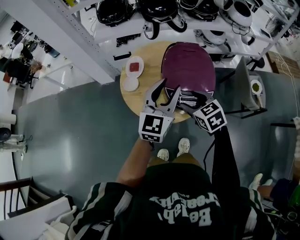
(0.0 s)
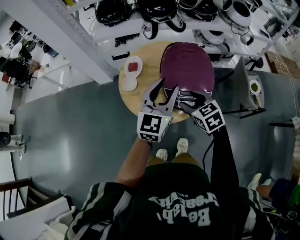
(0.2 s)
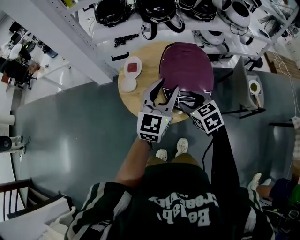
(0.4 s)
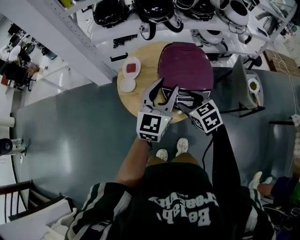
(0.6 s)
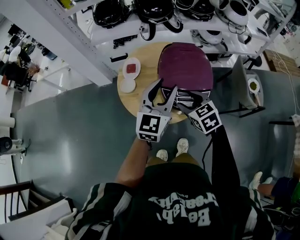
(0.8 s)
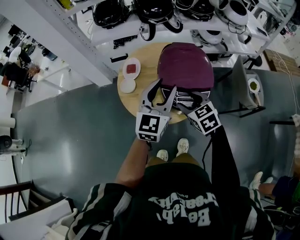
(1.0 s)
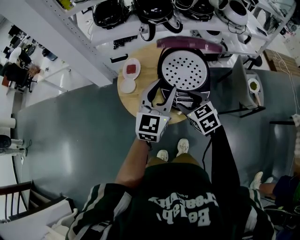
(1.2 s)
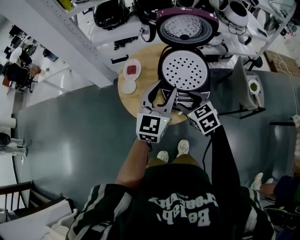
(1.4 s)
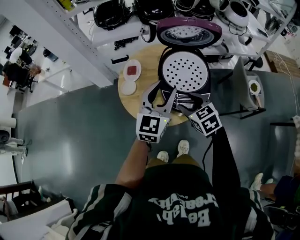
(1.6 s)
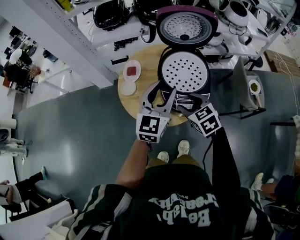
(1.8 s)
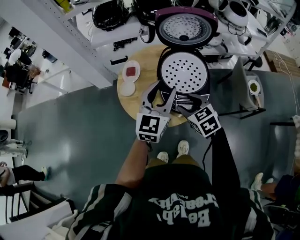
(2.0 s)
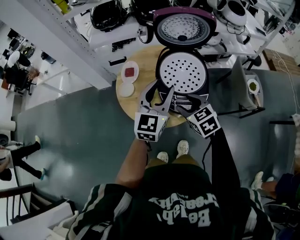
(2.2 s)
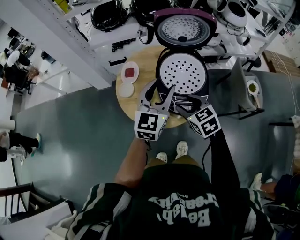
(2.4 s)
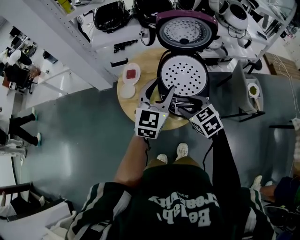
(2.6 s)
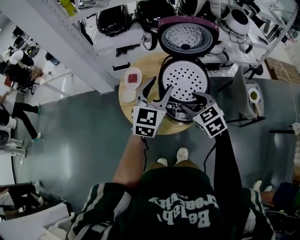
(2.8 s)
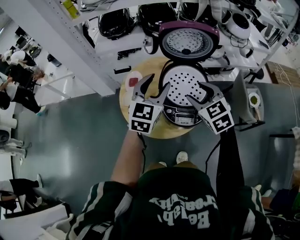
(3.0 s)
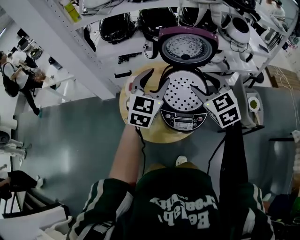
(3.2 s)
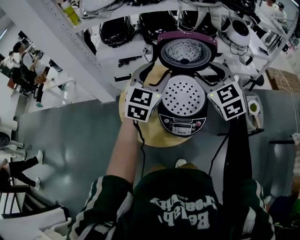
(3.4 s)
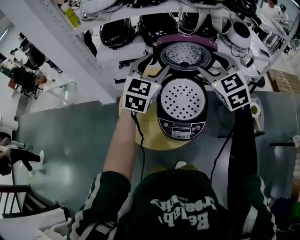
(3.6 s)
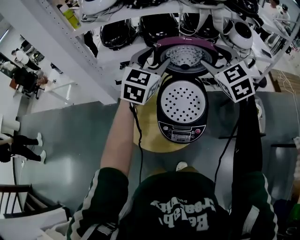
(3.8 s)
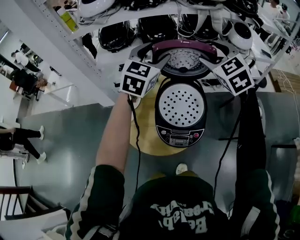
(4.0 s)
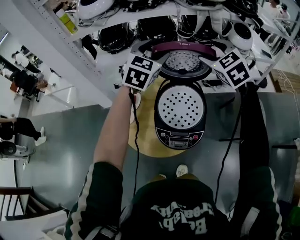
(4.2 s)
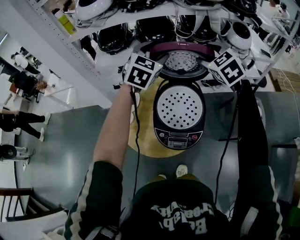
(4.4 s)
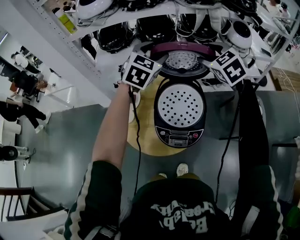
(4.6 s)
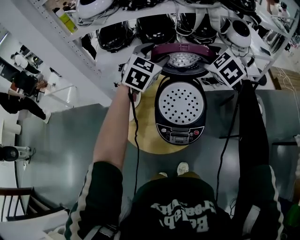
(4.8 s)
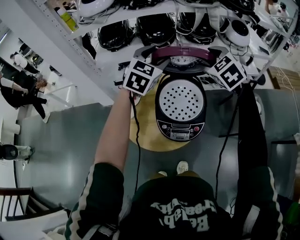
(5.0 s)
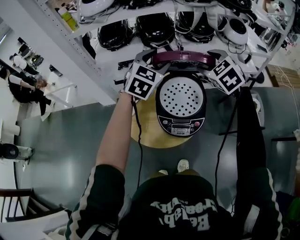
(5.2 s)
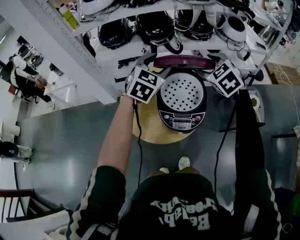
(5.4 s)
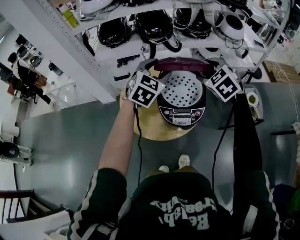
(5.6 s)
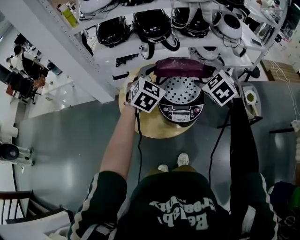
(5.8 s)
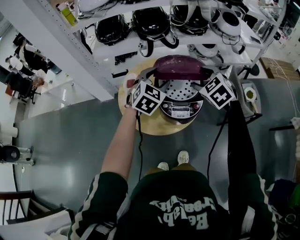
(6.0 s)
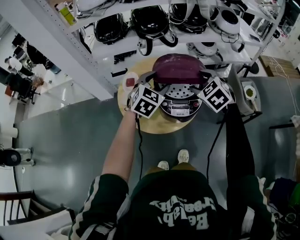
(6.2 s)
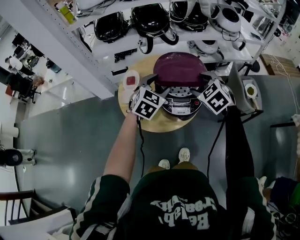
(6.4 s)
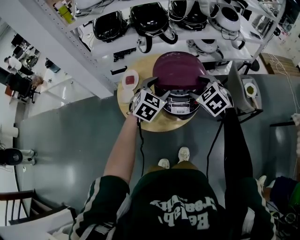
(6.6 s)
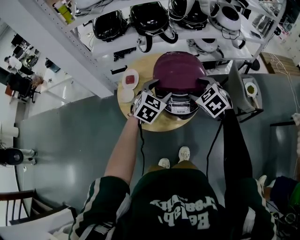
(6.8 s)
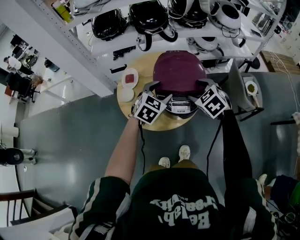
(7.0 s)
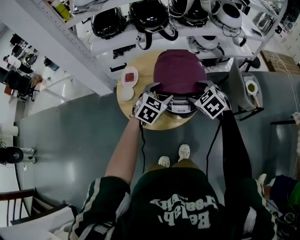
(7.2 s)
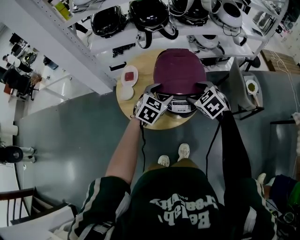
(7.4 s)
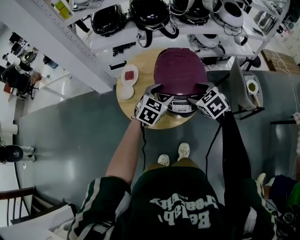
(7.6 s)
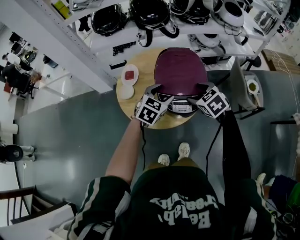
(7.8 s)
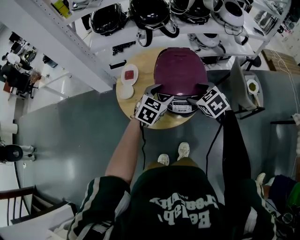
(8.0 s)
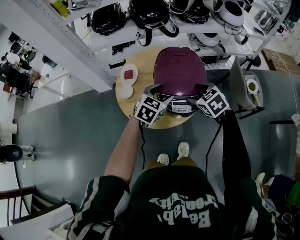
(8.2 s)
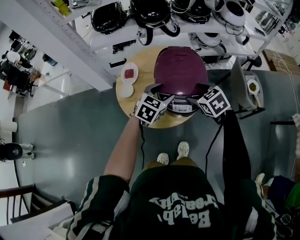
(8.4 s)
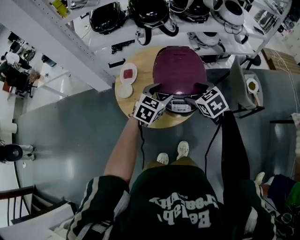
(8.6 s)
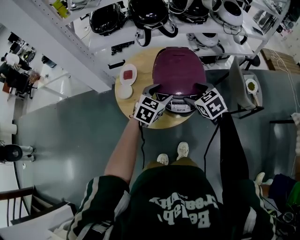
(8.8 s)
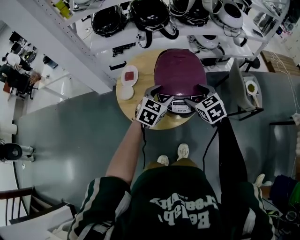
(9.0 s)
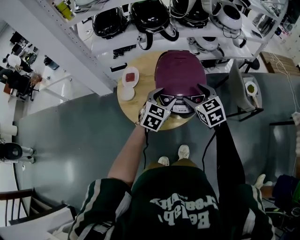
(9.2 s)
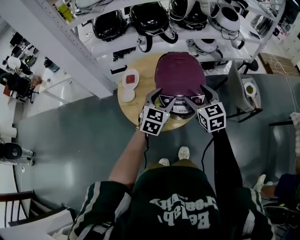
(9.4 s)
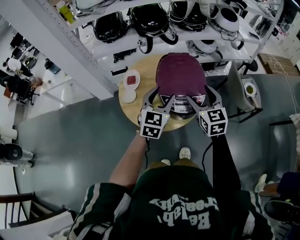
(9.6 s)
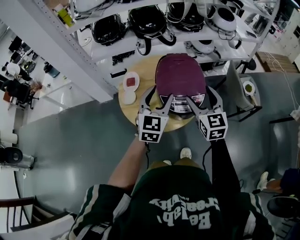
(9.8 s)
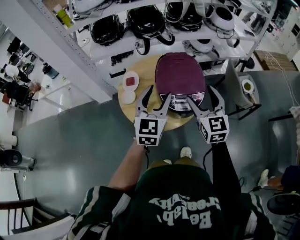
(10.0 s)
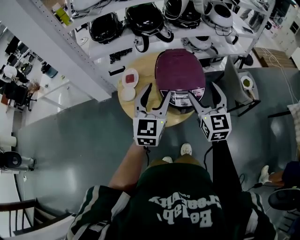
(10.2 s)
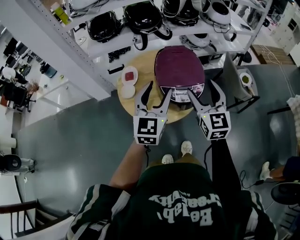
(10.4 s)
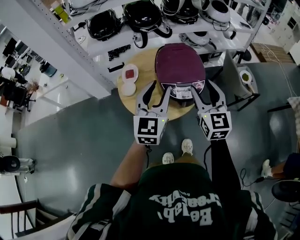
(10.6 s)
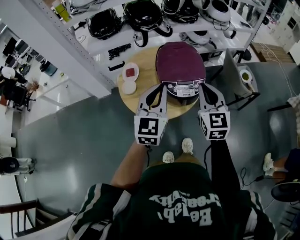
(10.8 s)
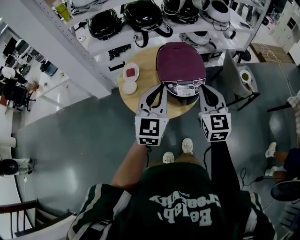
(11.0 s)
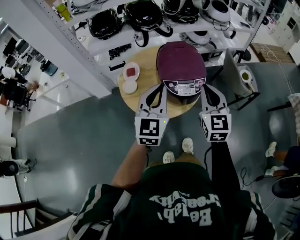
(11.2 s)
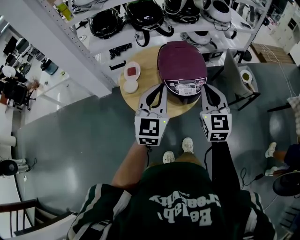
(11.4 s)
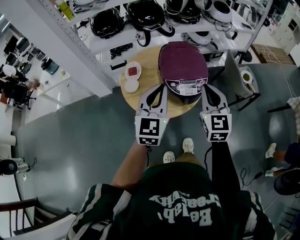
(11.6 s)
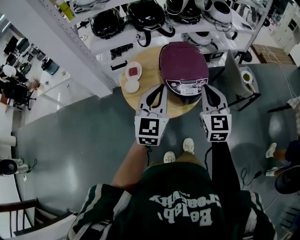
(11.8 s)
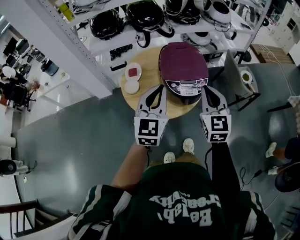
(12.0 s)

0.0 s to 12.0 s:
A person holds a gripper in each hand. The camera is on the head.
0.0 to 1.6 s: Neither gripper changes place.
1.6 to 3.0 s: The left gripper is displaced forward by approximately 5 cm. Meanwhile the right gripper goes approximately 10 cm upward and forward.
3.0 to 4.4 s: The right gripper shifts roughly 25 cm forward and upward. Meanwhile the left gripper travels forward by roughly 20 cm.
4.4 to 6.0 s: Both grippers move backward and downward, some 20 cm.
6.0 to 7.6 s: Both grippers move downward, some 10 cm.
7.6 to 9.0 s: The grippers make only small movements.
9.0 to 10.4 s: Both grippers travel together upward and backward, some 20 cm. The left gripper swivels approximately 30 degrees; the right gripper angles its fingers upward, by some 30 degrees.
10.4 to 12.0 s: The left gripper closes up. Meanwhile the right gripper closes.

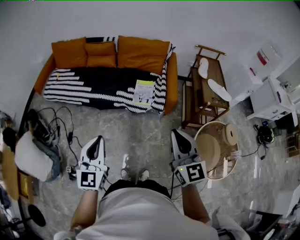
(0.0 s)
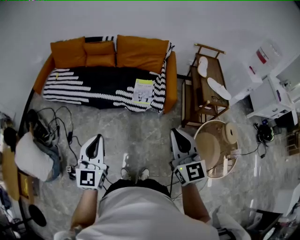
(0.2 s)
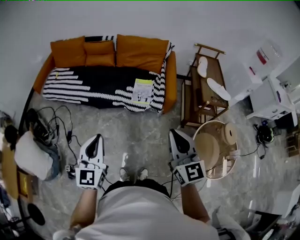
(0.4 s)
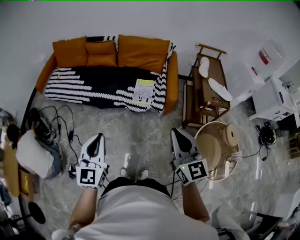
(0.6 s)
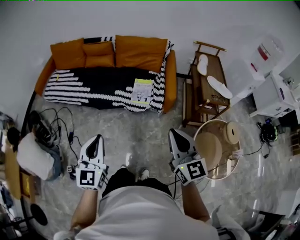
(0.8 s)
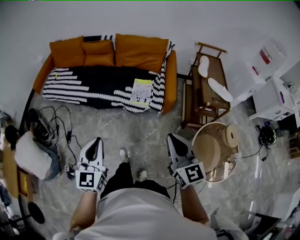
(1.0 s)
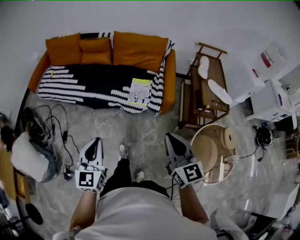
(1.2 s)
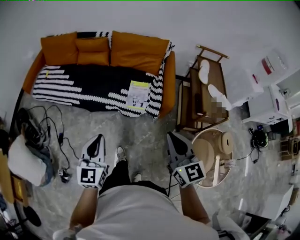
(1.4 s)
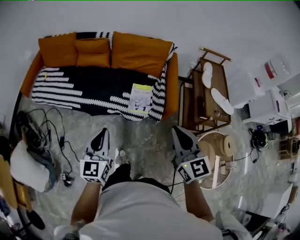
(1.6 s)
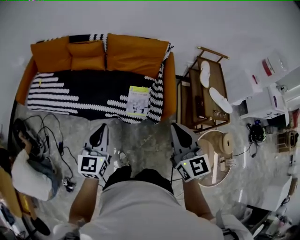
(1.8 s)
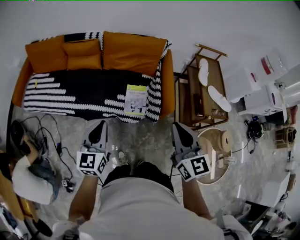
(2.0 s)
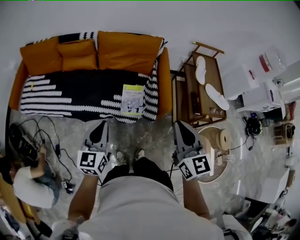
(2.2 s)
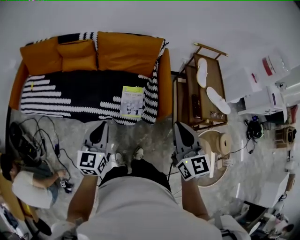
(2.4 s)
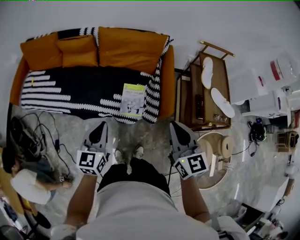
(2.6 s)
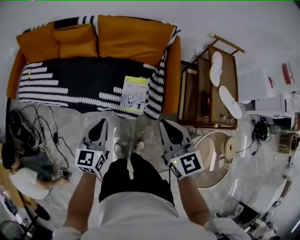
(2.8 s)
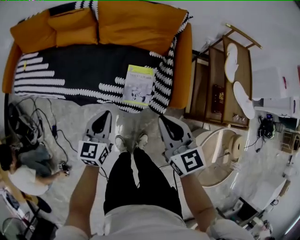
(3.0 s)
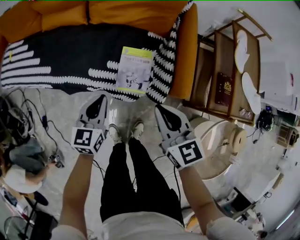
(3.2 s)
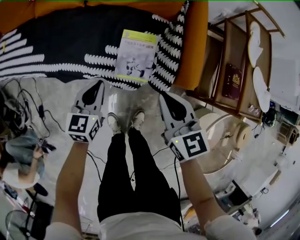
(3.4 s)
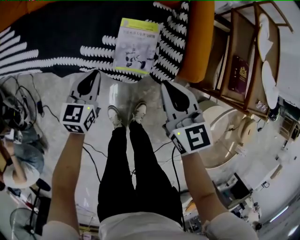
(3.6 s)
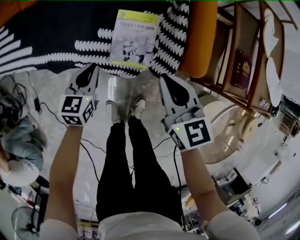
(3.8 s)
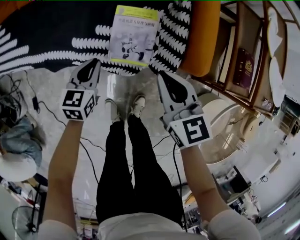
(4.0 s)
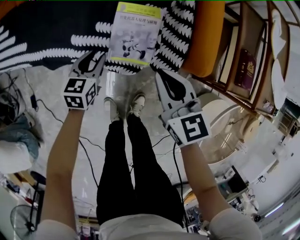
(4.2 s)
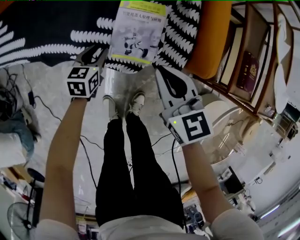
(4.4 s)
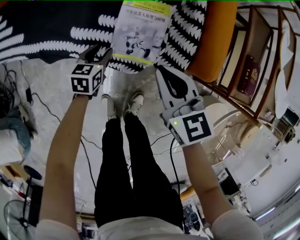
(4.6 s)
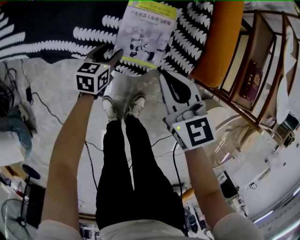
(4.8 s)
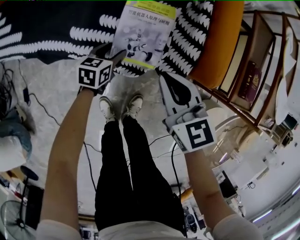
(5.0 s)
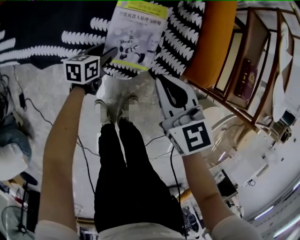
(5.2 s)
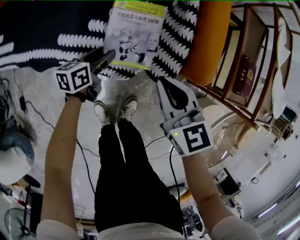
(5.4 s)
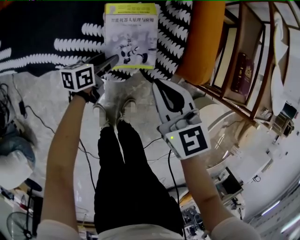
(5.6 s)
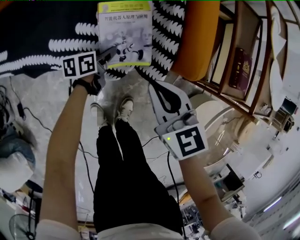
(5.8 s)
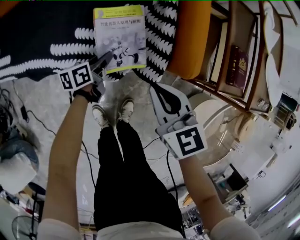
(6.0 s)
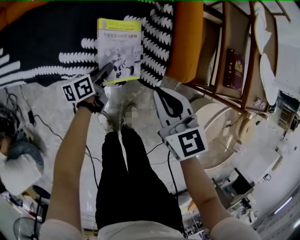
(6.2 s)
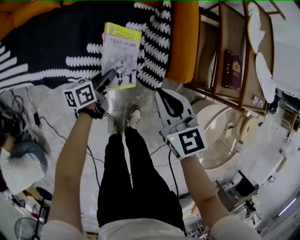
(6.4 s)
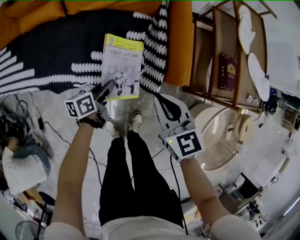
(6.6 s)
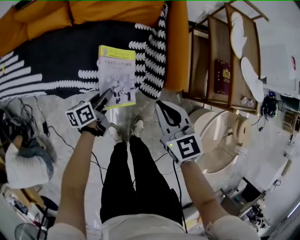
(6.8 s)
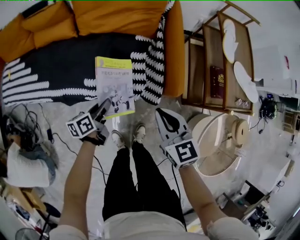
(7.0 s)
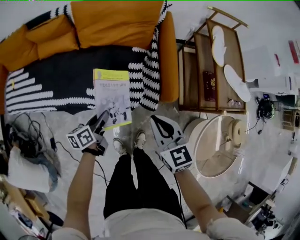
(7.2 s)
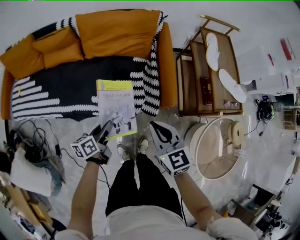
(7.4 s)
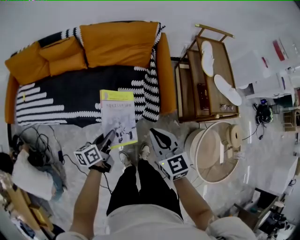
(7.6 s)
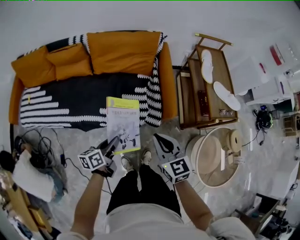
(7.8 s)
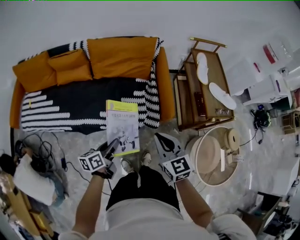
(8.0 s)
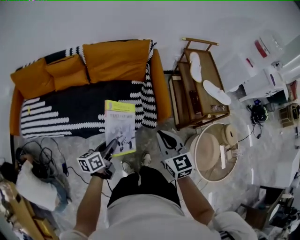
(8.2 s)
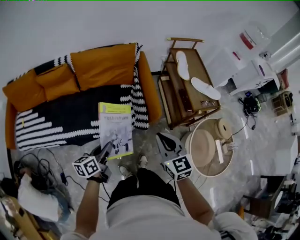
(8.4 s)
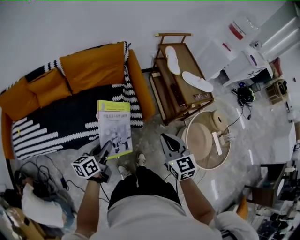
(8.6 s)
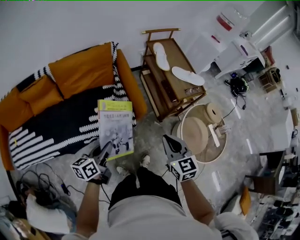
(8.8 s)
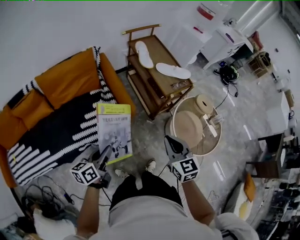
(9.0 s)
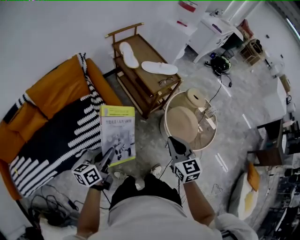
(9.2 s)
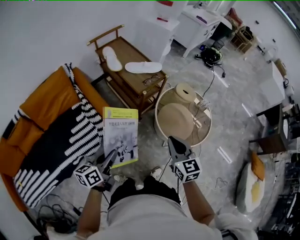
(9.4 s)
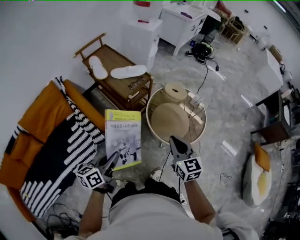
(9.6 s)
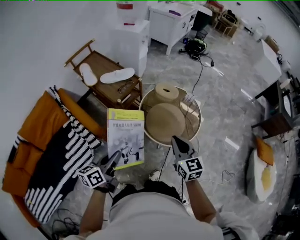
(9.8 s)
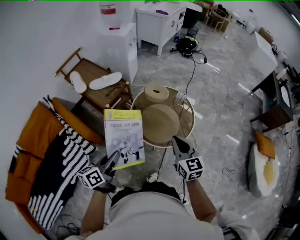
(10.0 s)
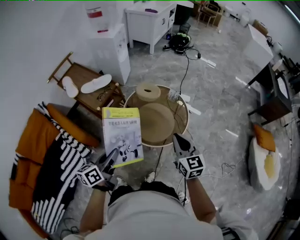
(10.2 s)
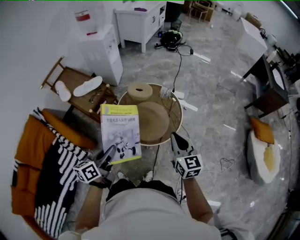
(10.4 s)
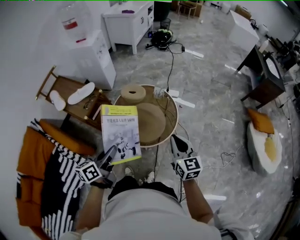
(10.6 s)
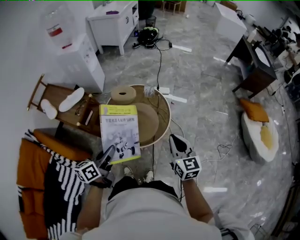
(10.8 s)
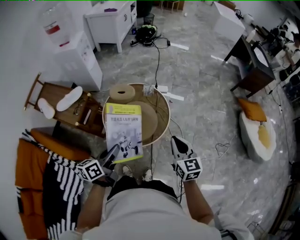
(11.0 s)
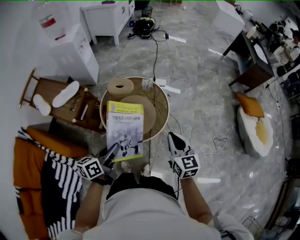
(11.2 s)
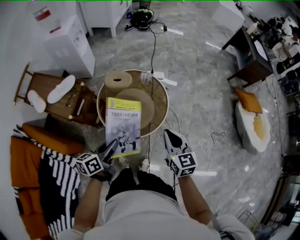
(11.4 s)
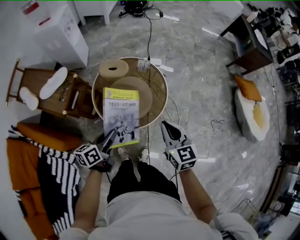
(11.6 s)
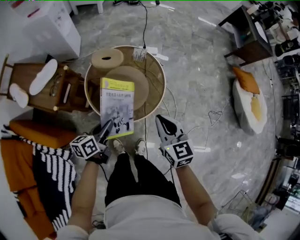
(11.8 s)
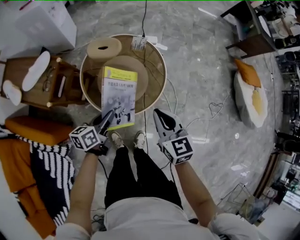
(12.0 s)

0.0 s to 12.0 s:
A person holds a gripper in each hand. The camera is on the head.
0.0 to 1.6 s: Both grippers travel together forward, roughly 20 cm.
1.6 to 3.0 s: Both grippers move forward and downward, roughly 30 cm.
3.0 to 4.4 s: The grippers both shift downward by some 35 cm. The left gripper rotates about 20 degrees, and opens.
4.4 to 6.0 s: The left gripper is displaced to the right by approximately 10 cm, turns by some 40 degrees, and opens, then closes again. The right gripper travels to the right by about 5 cm.
6.0 to 7.6 s: The right gripper shifts some 30 cm upward; the left gripper is displaced upward and backward by about 40 cm.
7.6 to 9.0 s: The right gripper moves roughly 25 cm, and turns by some 30 degrees, while the left gripper travels upward by about 15 cm, and turns by about 30 degrees.
9.0 to 10.4 s: The two grippers travel together, roughly 50 cm. The right gripper turns by about 40 degrees, while the left gripper rotates approximately 30 degrees.
10.4 to 12.0 s: The left gripper travels downward and forward by some 30 cm, and rotates about 20 degrees. Meanwhile the right gripper goes about 15 cm downward and to the left.
